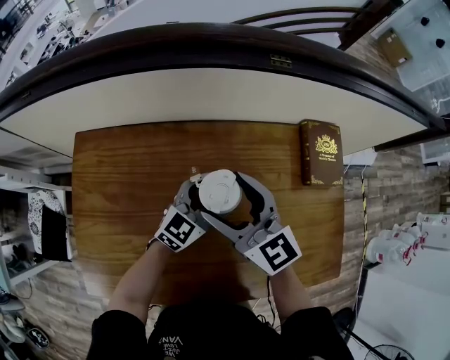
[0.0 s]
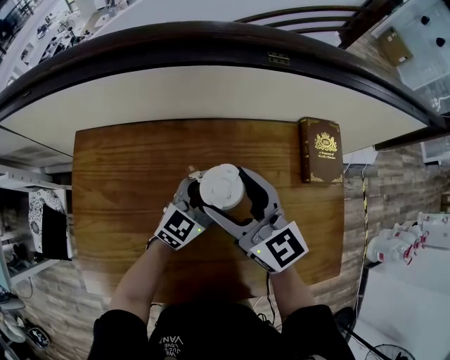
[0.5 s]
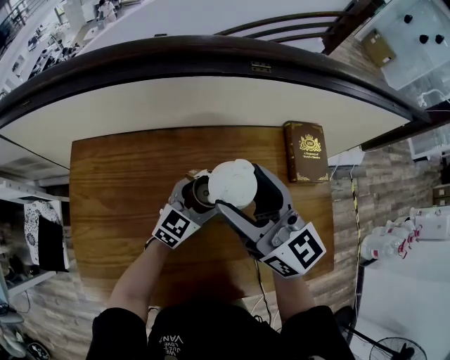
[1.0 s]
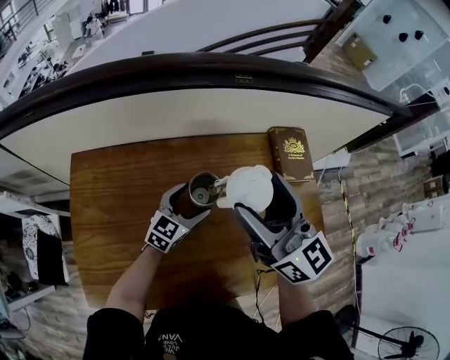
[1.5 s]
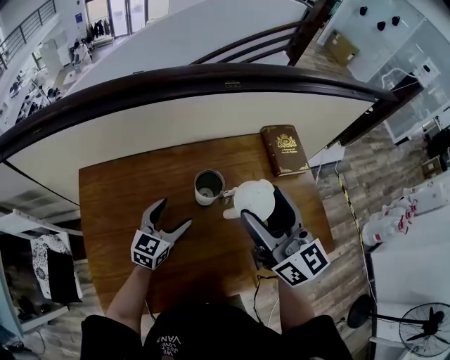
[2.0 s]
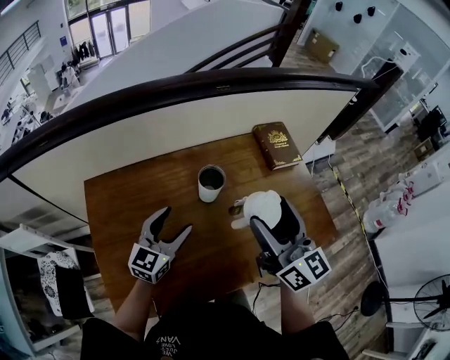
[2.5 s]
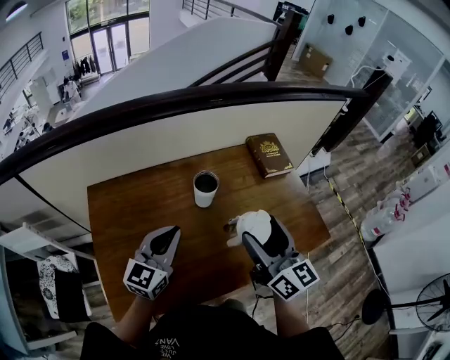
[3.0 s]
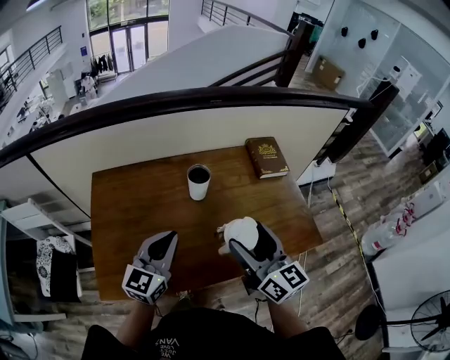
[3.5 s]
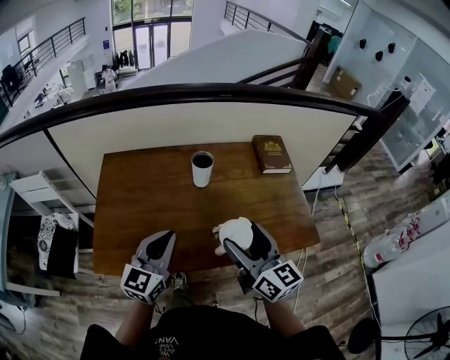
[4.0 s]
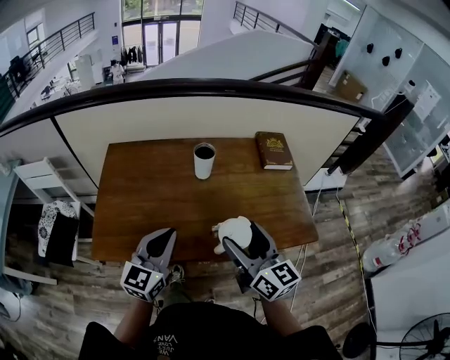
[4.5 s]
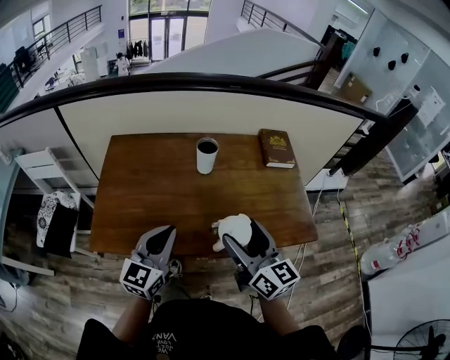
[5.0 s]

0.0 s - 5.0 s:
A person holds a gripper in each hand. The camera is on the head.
0.0 s - 2.5 s: The left gripper is displaced to the left, backward and upward by some 20 cm. Meanwhile the right gripper is displaced backward, upward and to the right by roughly 20 cm, and turns by about 40 degrees.
2.5 s - 5.0 s: Both grippers move backward, about 20 cm. The left gripper changes its angle by some 20 degrees, and closes its fingers.

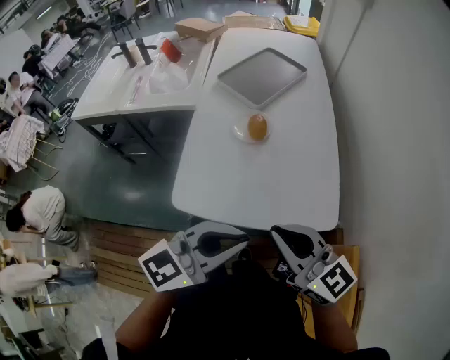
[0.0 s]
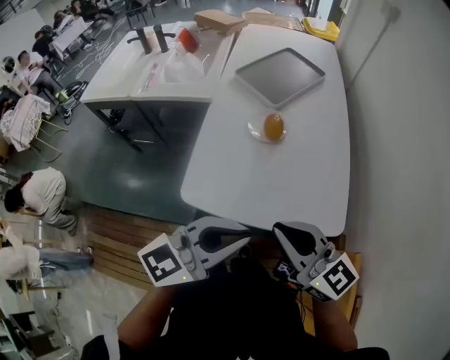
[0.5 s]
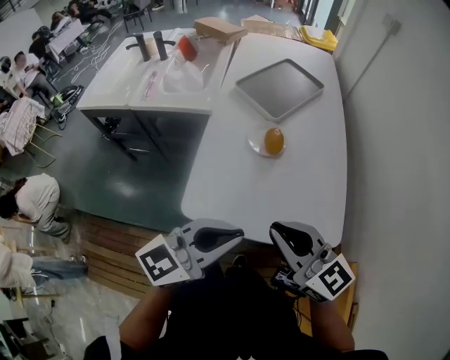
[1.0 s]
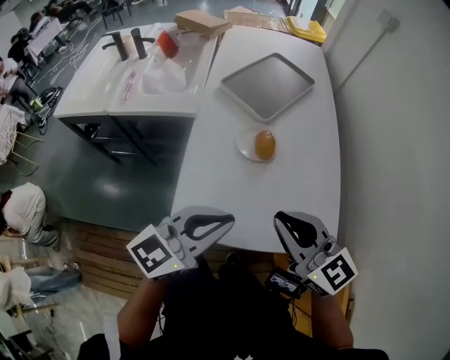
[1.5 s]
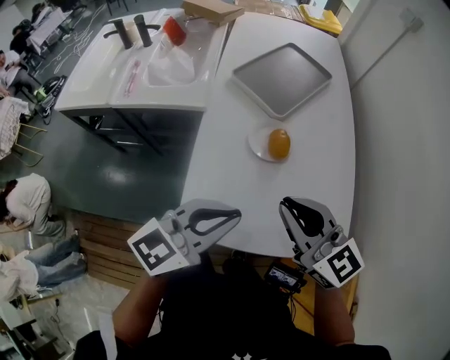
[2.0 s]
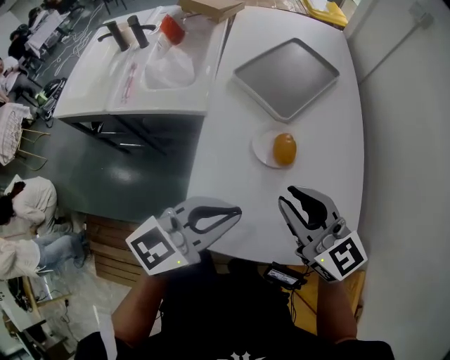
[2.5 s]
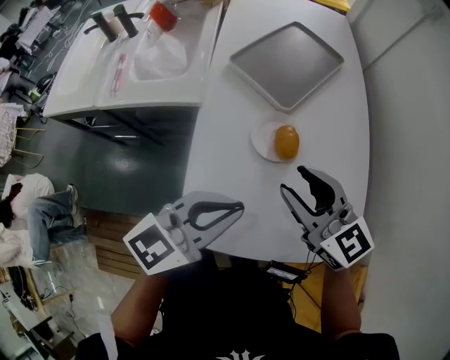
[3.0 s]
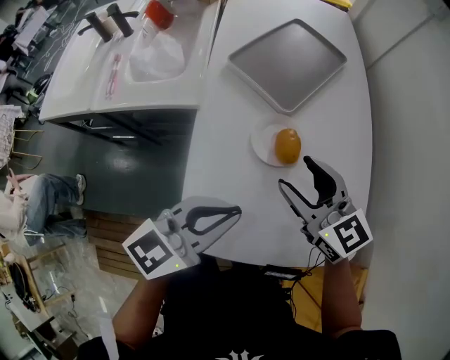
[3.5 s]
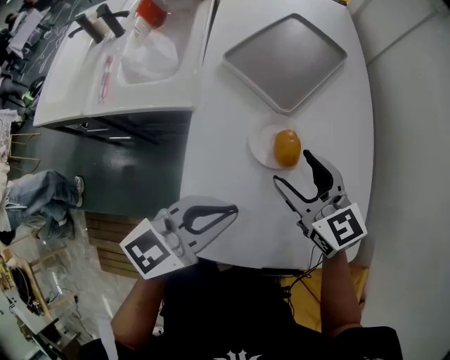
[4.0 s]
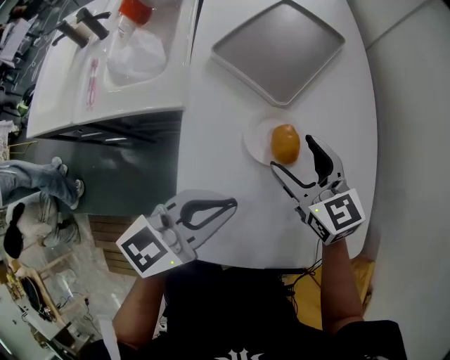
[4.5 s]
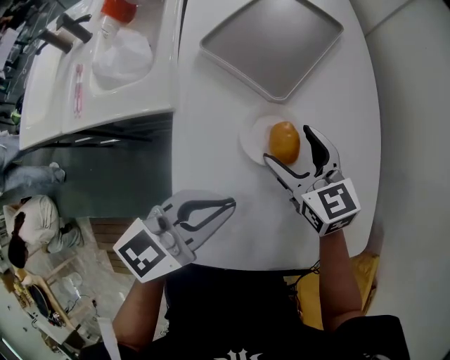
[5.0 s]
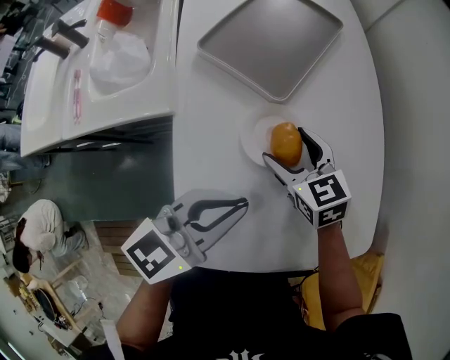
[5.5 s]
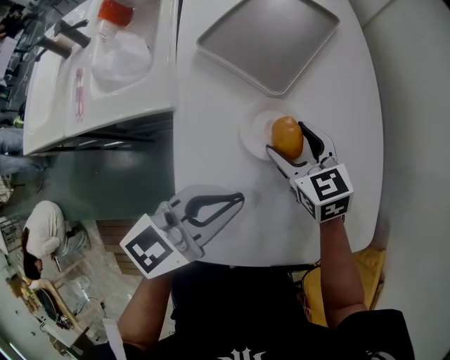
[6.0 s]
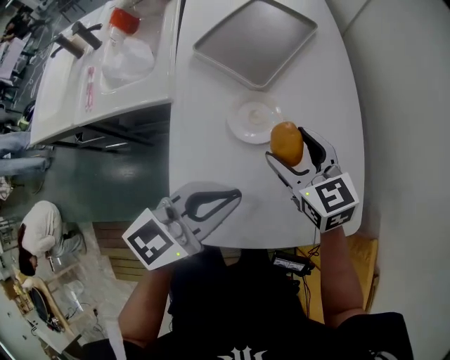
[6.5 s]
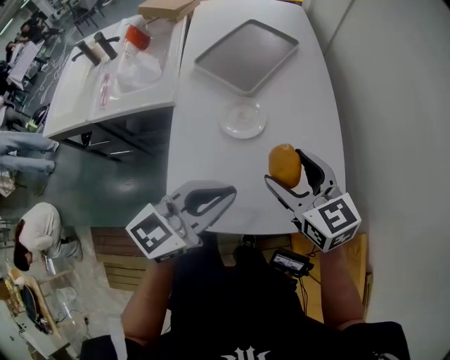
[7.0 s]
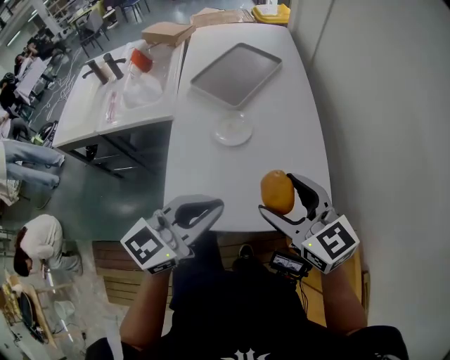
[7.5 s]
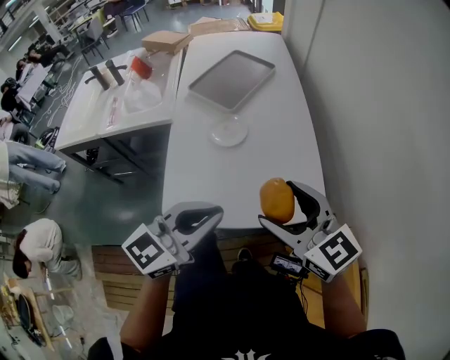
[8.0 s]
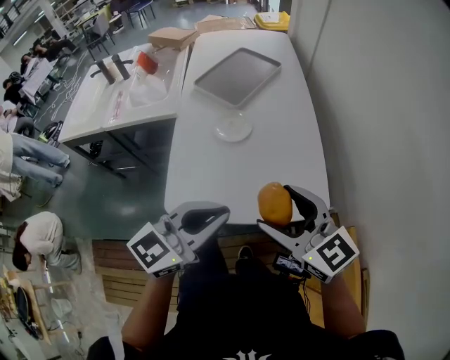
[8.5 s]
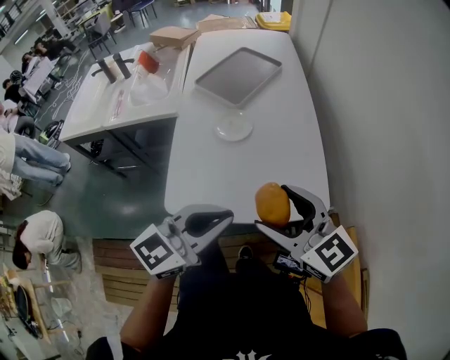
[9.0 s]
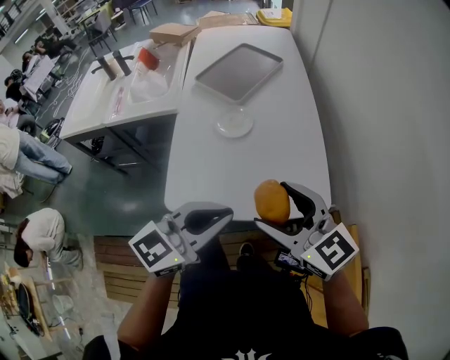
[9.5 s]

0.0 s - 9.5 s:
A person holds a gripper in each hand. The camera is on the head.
0.0 s - 2.0 s: Both grippers travel together forward and to the left, about 20 cm.
2.0 s - 4.0 s: The left gripper is displaced forward and downward by about 10 cm. The right gripper travels forward and downward by some 20 cm, and opens its fingers.
4.0 s - 5.5 s: The left gripper is displaced forward by roughly 5 cm, while the right gripper is displaced downward and forward by approximately 15 cm.
5.5 s - 7.5 s: The two grippers go roughly 30 cm backward, upward and to the right. The right gripper swivels some 20 degrees.
7.5 s - 9.5 s: Both grippers move backward, about 5 cm.

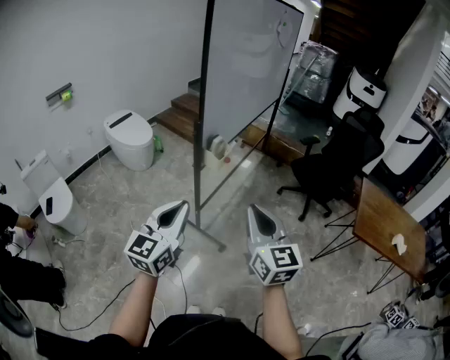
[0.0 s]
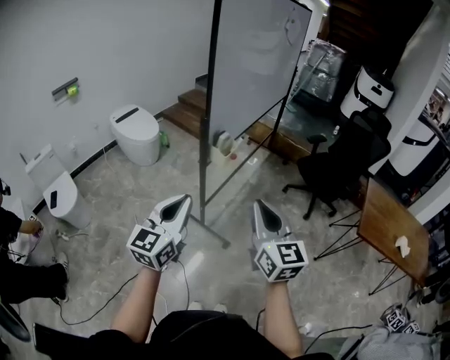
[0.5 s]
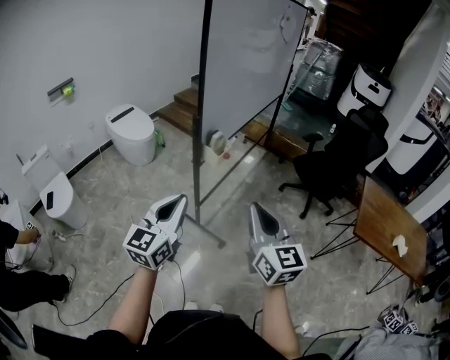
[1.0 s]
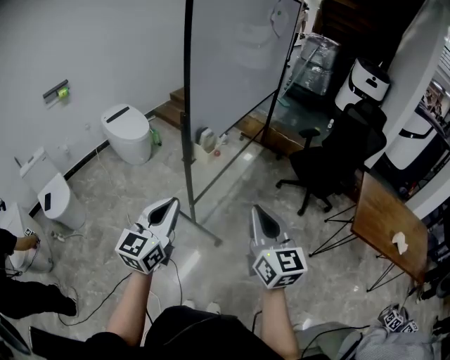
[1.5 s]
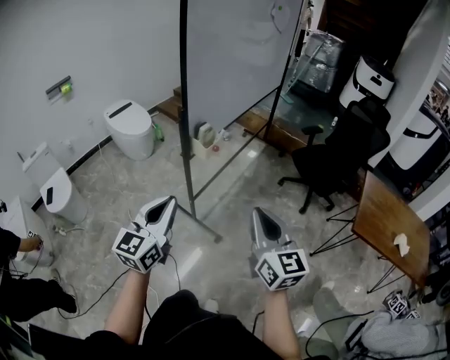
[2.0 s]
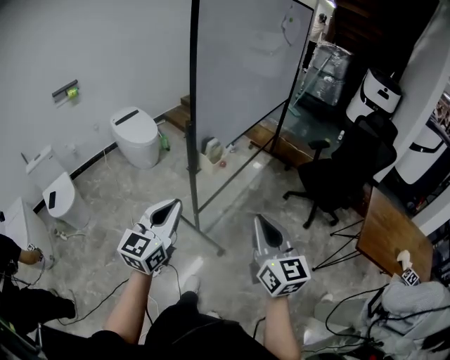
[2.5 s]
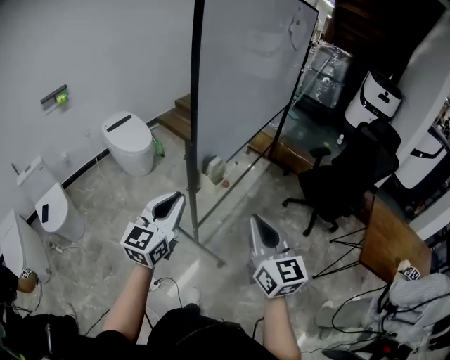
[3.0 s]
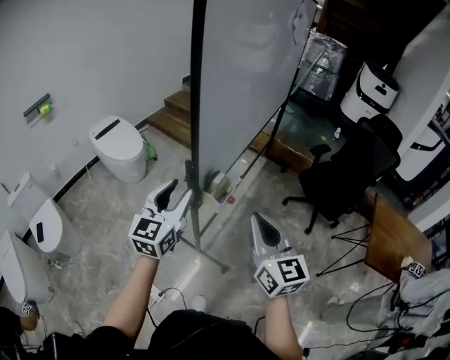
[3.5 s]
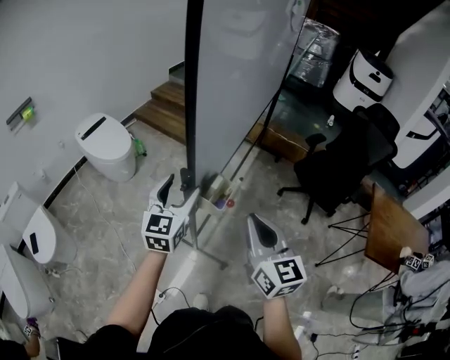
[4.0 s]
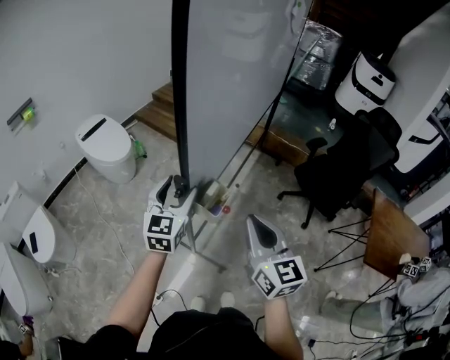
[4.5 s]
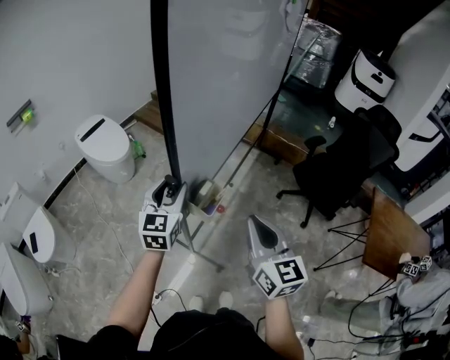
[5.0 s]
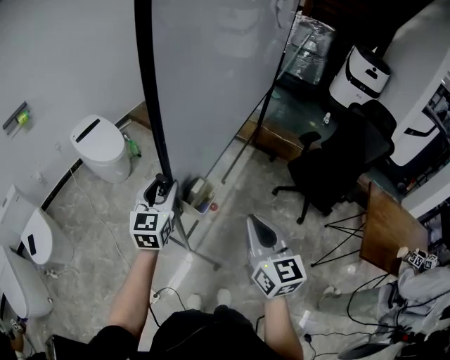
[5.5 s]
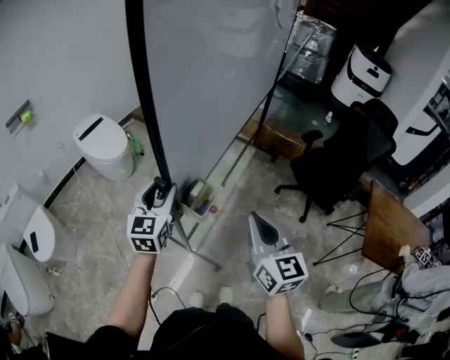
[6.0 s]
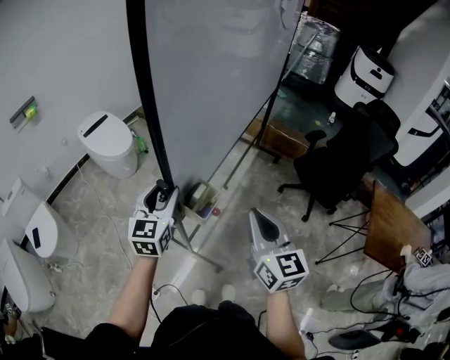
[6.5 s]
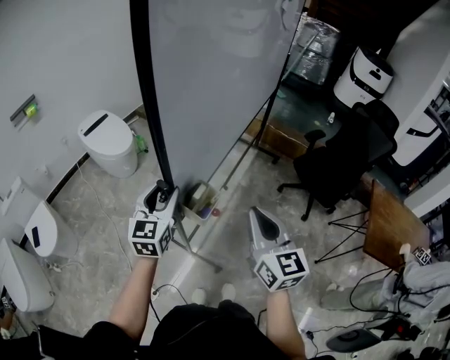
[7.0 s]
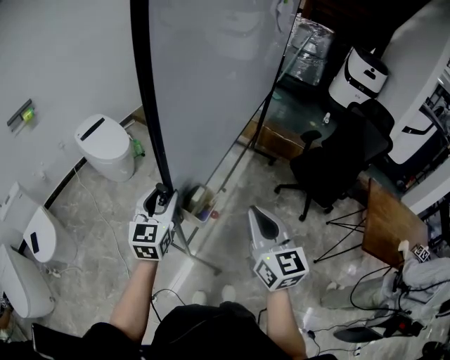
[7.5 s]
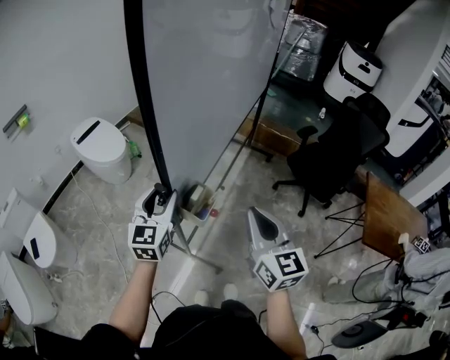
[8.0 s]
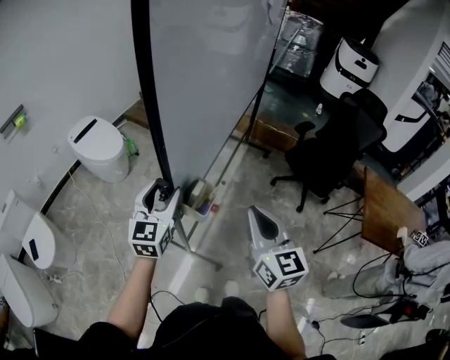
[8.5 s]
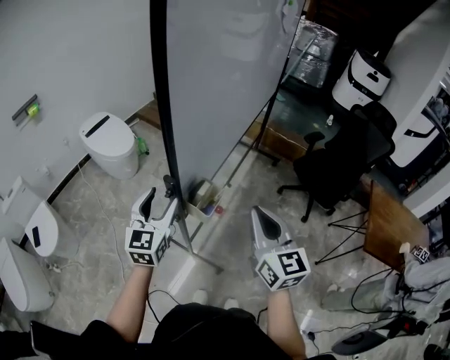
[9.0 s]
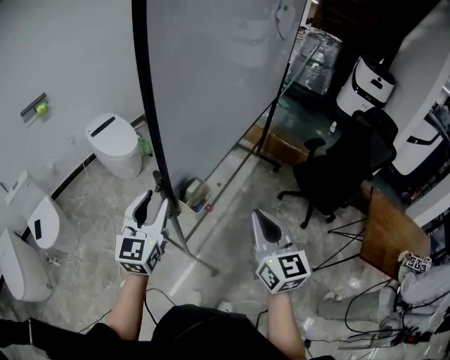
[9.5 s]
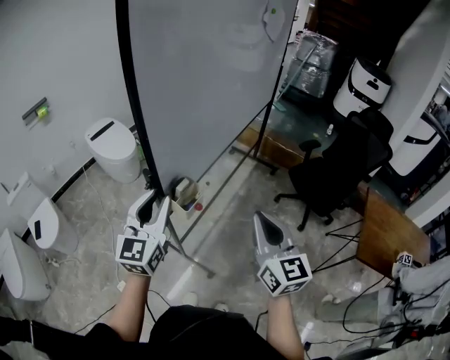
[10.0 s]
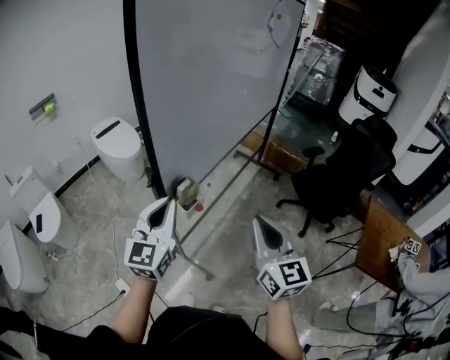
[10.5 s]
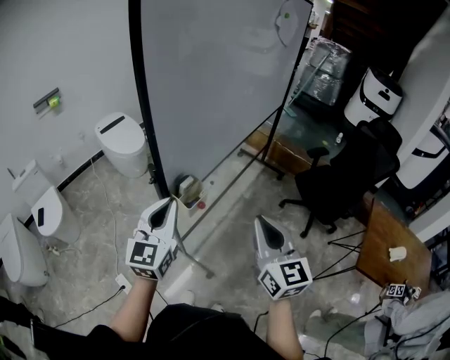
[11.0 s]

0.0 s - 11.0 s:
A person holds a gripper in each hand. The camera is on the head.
0.0 s - 2.0 s: The right gripper shifts approximately 10 cm to the right, while the left gripper moves roughly 5 cm.
2.0 s - 3.5 s: The right gripper is displaced forward and to the left by approximately 25 cm; the left gripper moves forward, roughly 30 cm, and opens its fingers.
3.5 s - 5.5 s: The right gripper moves forward, about 5 cm. Meanwhile the left gripper shifts approximately 10 cm forward, and opens, then closes once more.
5.5 s - 7.5 s: The left gripper heads backward, covering roughly 5 cm.
7.5 s - 9.0 s: The grippers stay close to where they were, moving slightly.
9.0 s - 11.0 s: The left gripper shifts some 15 cm to the right, backward and upward, and closes. The right gripper moves to the right and backward, approximately 10 cm.

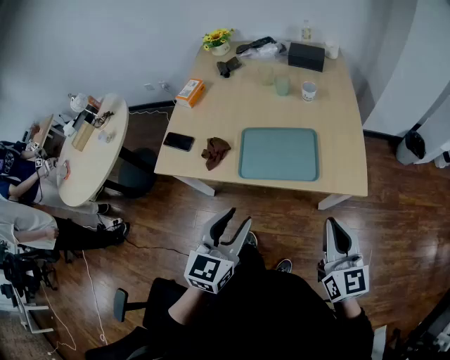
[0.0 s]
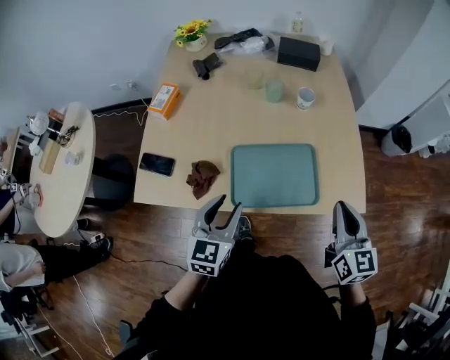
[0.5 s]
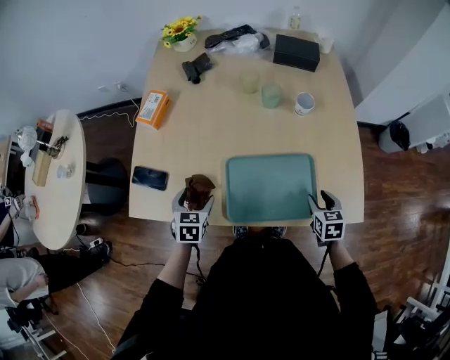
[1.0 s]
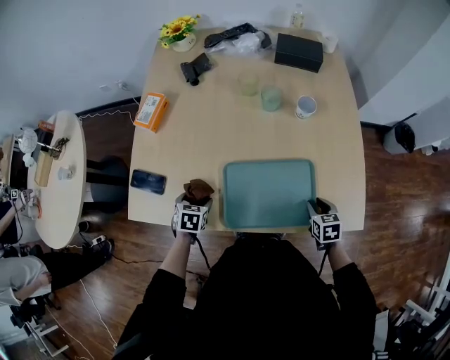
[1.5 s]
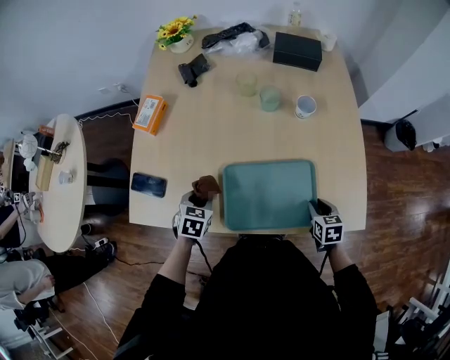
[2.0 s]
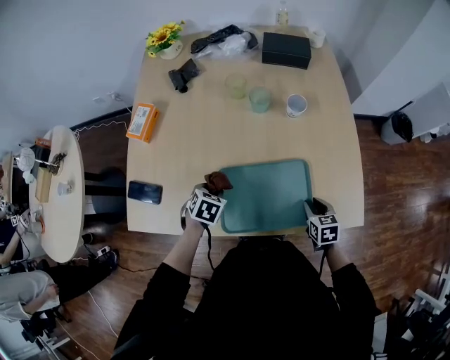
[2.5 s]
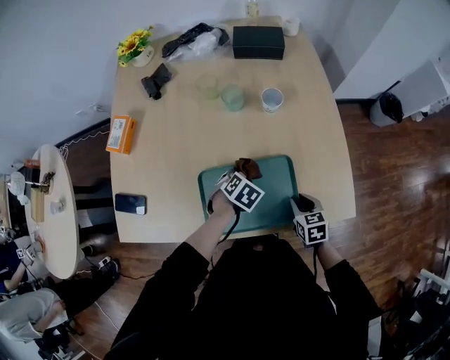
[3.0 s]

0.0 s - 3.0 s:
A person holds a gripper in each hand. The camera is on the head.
0.0 s - 1.5 s: The right gripper moves downward and forward, approximately 40 cm, points its fingers some 50 degrees further downward, and opens its fingers. Meanwhile the left gripper moves downward, forward and to the left, some 50 cm, points its fingers some 40 degrees further downward, and opens.
1.5 s - 3.0 s: The left gripper goes roughly 25 cm to the right, swivels about 40 degrees, and closes its fingers.
